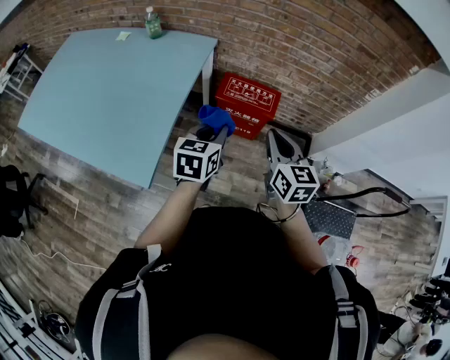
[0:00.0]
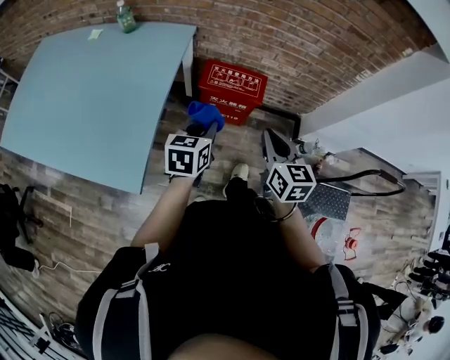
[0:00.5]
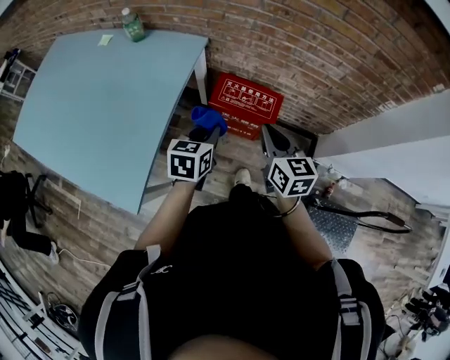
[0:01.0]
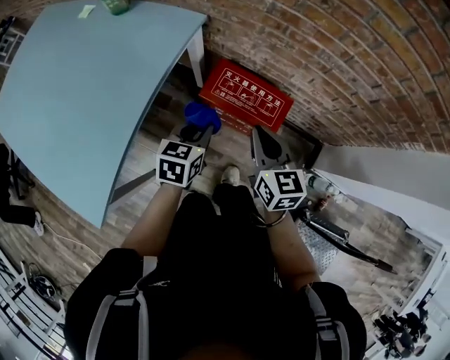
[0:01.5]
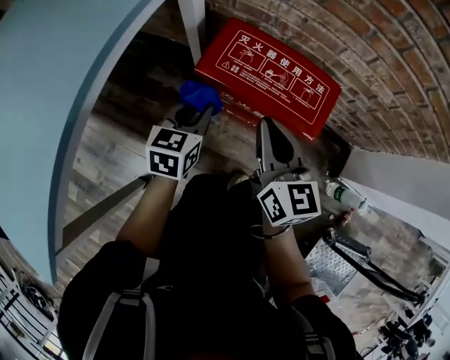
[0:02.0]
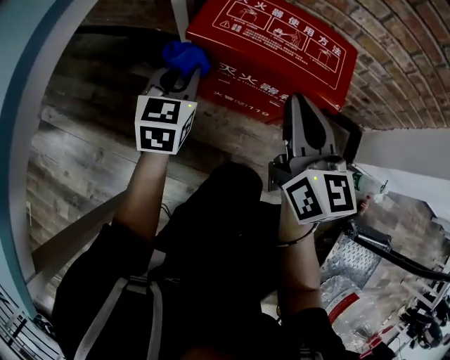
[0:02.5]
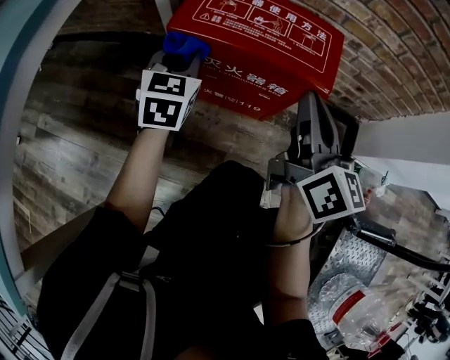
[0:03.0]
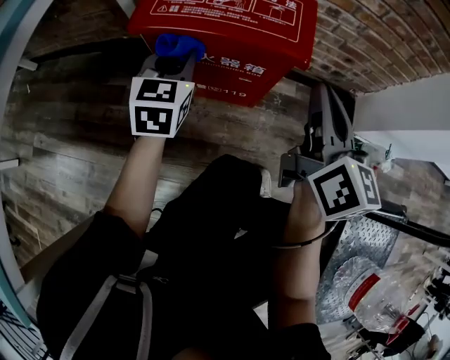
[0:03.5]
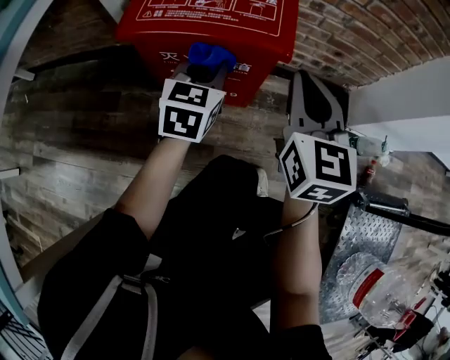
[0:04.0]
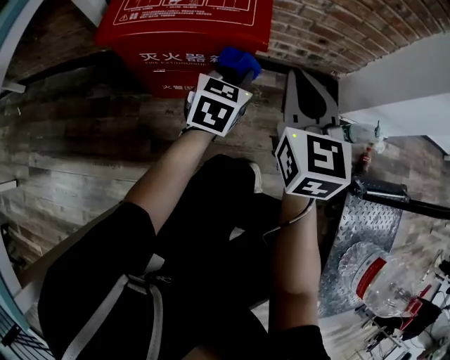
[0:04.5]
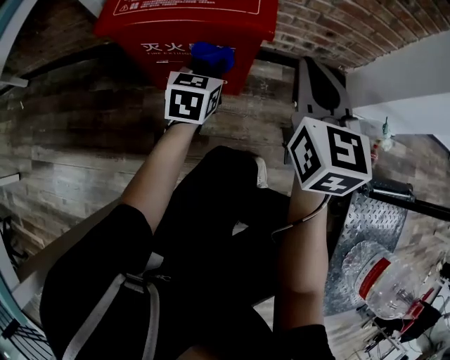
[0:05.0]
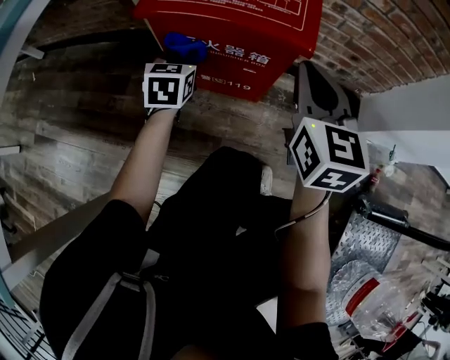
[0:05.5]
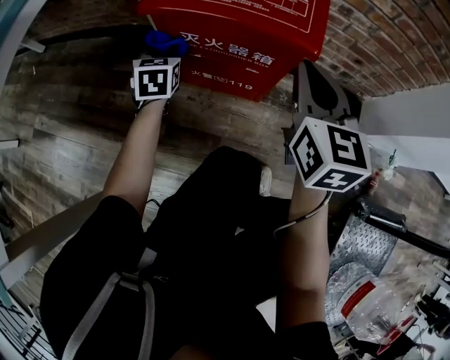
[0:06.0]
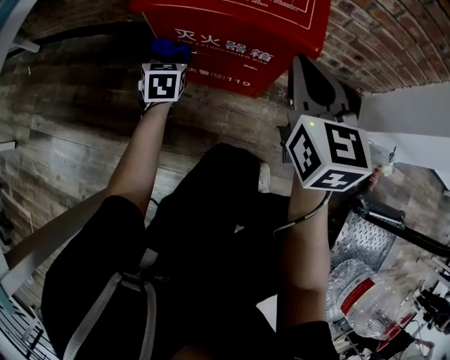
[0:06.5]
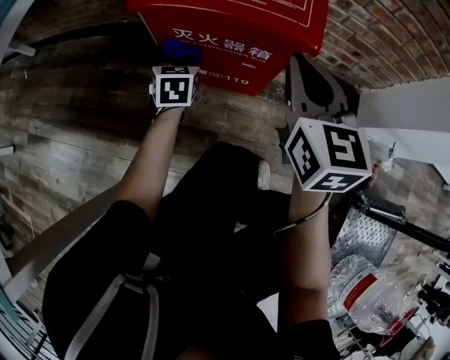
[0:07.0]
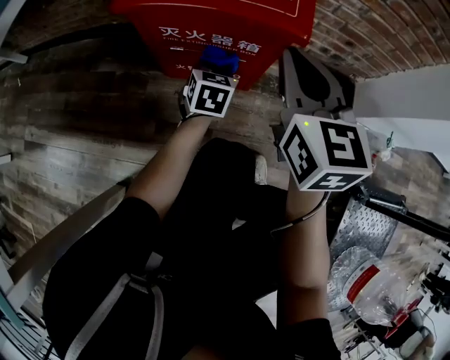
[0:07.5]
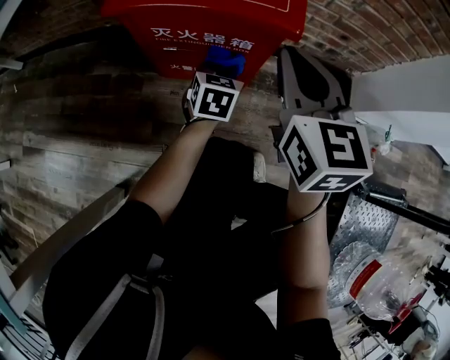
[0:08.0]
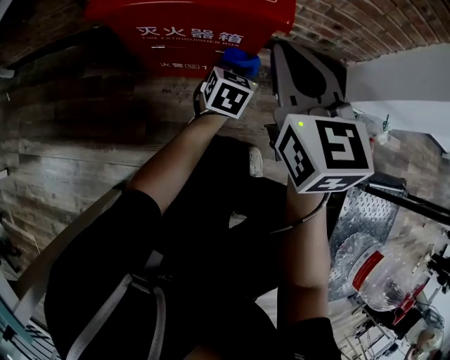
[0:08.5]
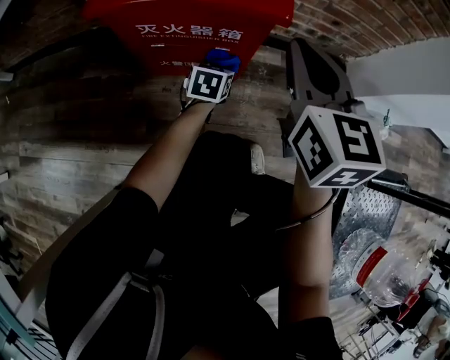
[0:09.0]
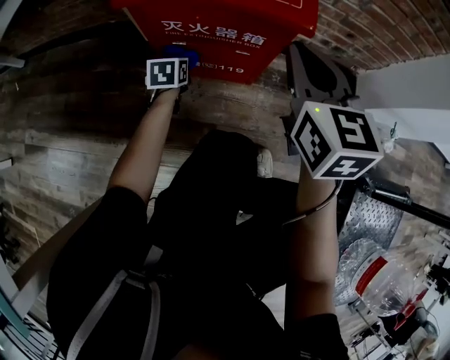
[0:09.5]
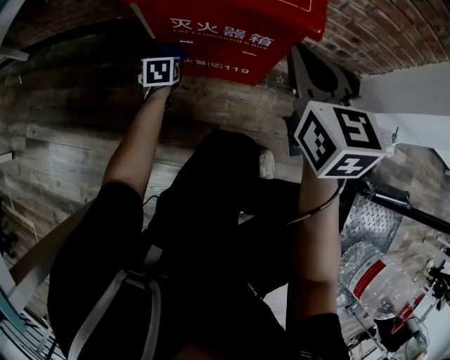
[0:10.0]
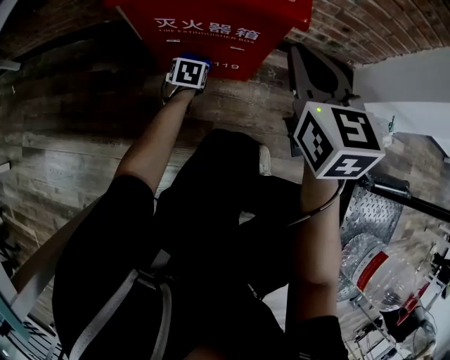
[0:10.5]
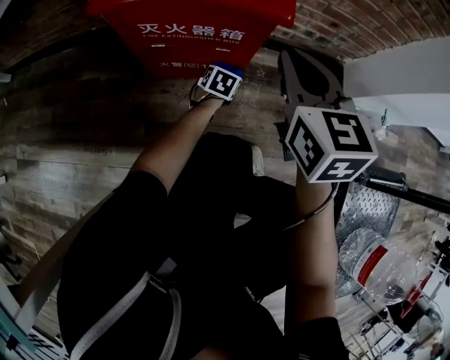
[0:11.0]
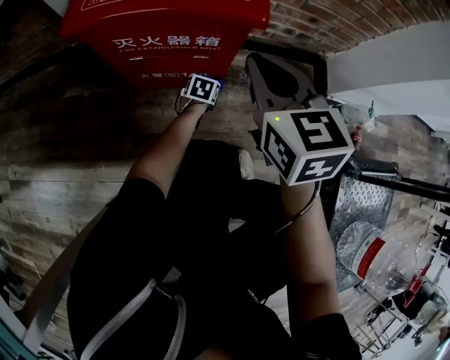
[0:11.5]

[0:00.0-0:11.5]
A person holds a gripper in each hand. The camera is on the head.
0:00.0 to 0:02.0: Both grippers move downward and forward, roughly 50 cm.
0:02.0 to 0:04.0: Both grippers travel together to the right and downward, about 20 cm. The left gripper rotates approximately 20 degrees, while the right gripper rotates some 30 degrees.
0:04.0 to 0:06.0: The left gripper changes place by some 20 cm, and changes its angle by roughly 30 degrees.
0:06.0 to 0:07.5: The left gripper travels to the right by approximately 20 cm.
0:07.5 to 0:09.5: The left gripper shifts roughly 15 cm to the left and downward.
0:09.5 to 0:11.5: The left gripper moves to the right and downward, some 25 cm, and rotates approximately 30 degrees.

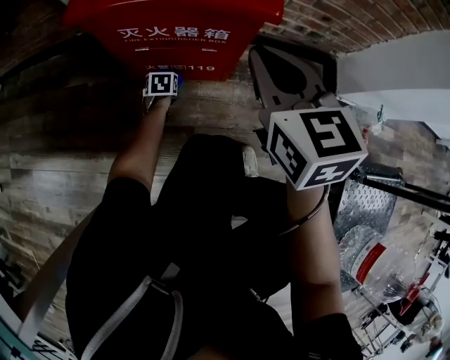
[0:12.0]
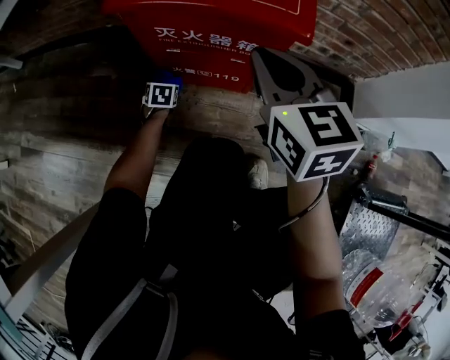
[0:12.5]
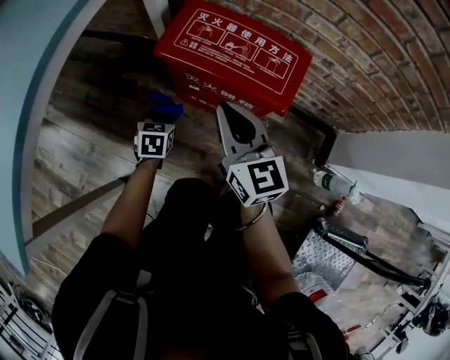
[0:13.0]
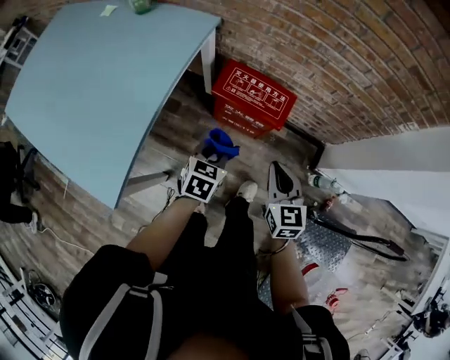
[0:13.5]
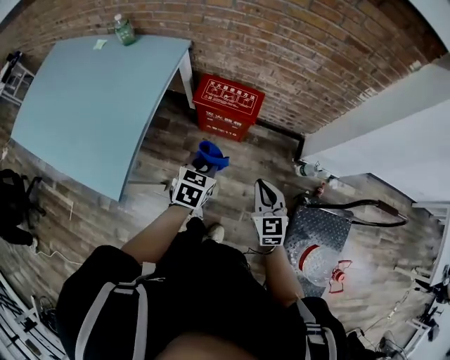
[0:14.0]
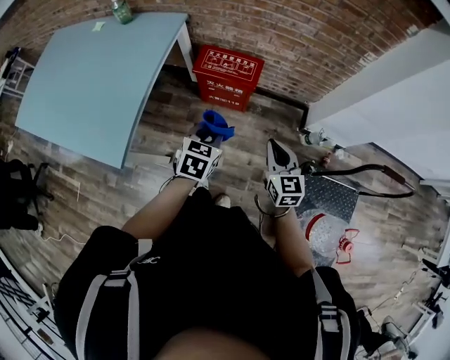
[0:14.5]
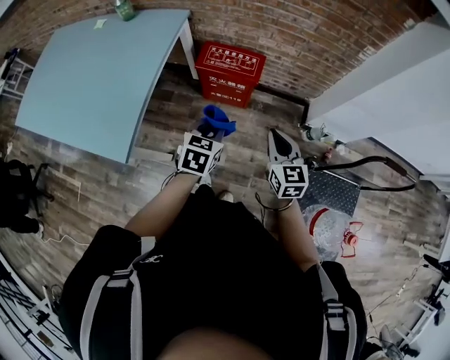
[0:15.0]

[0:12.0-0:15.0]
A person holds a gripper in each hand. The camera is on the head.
0:12.0 to 0:13.5: The right gripper heads upward and backward, covering roughly 35 cm. Meanwhile the left gripper goes approximately 70 cm upward, and rotates roughly 20 degrees.
0:13.5 to 0:15.0: The grippers both shift backward, upward and to the right by some 20 cm.

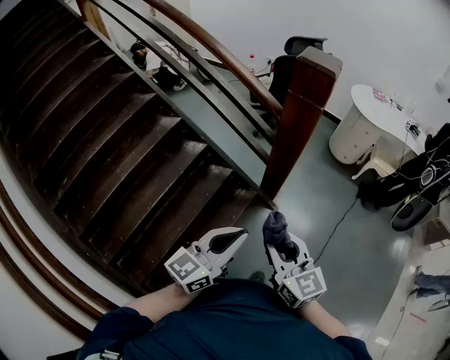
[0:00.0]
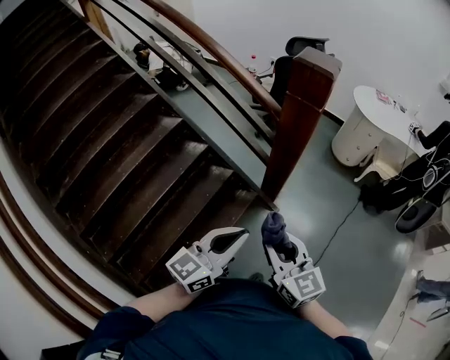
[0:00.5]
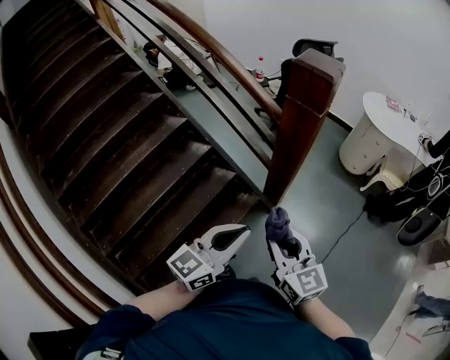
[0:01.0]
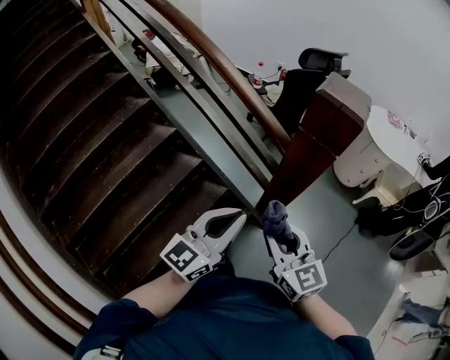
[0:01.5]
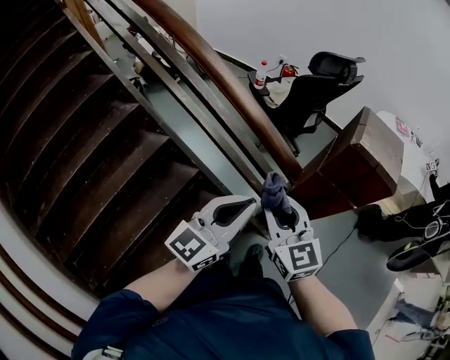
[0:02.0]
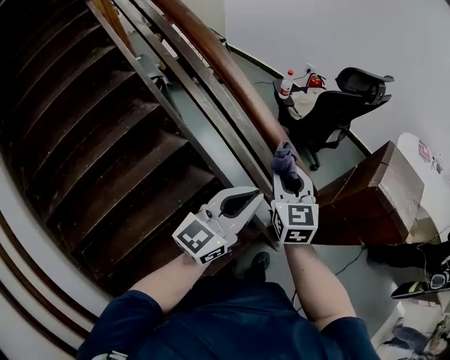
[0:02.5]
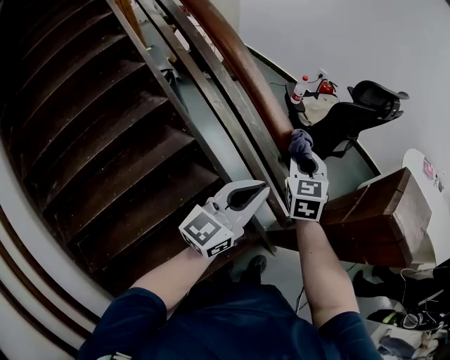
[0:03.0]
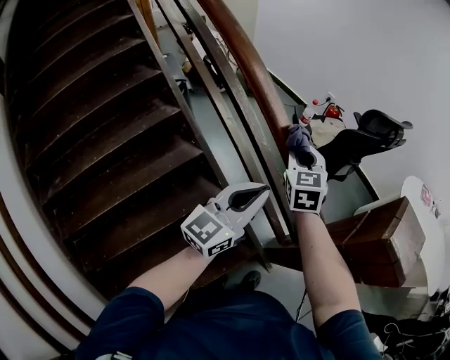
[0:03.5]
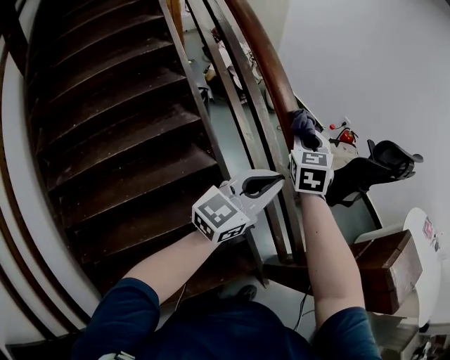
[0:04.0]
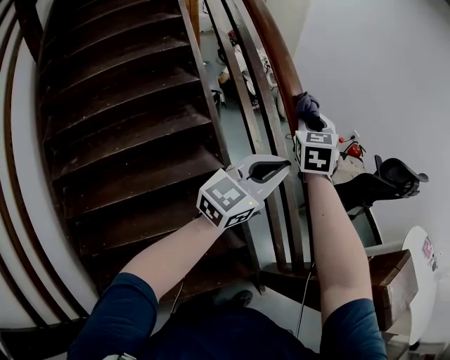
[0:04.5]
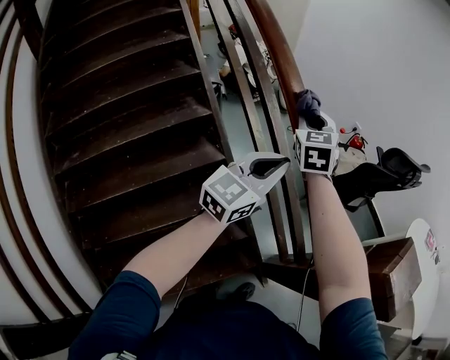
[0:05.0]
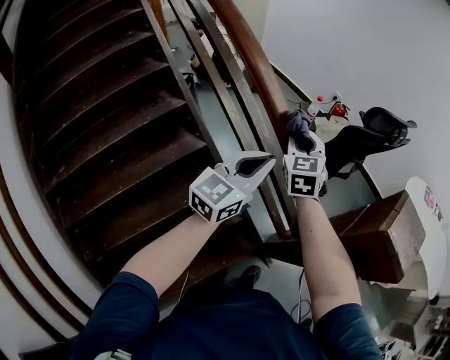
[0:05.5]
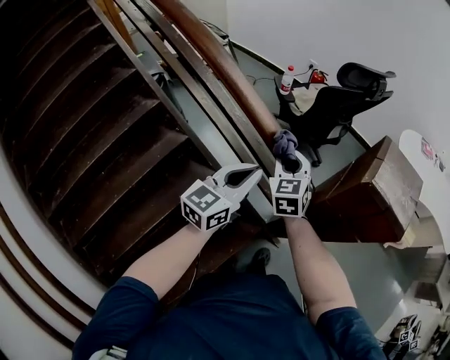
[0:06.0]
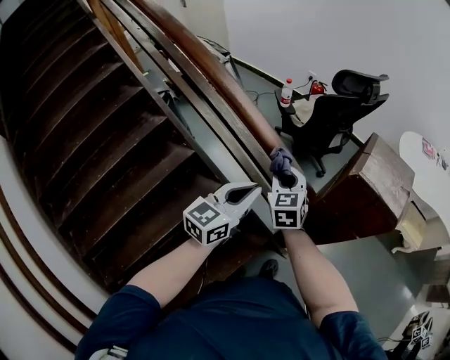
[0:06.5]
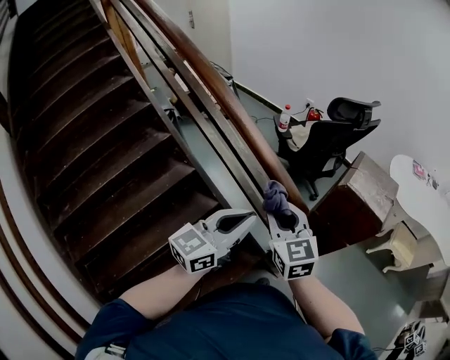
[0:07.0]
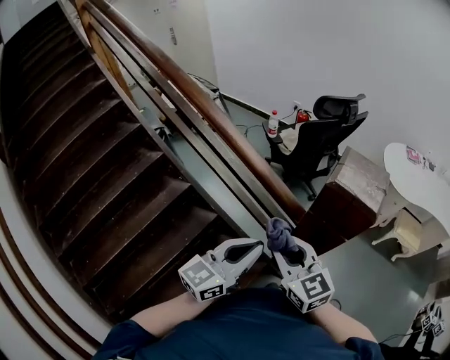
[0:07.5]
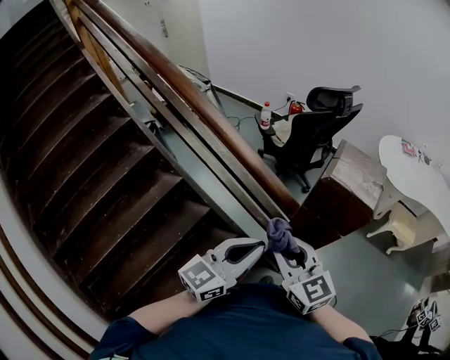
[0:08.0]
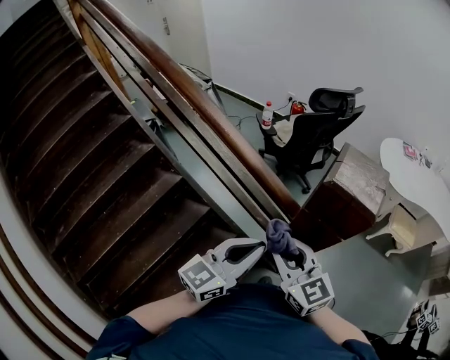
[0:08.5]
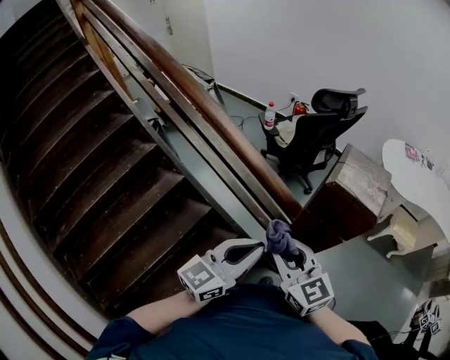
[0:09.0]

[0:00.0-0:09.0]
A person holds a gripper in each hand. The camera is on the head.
0:00.0 to 0:02.0: The pair of grippers is taken forward, roughly 40 cm.
0:02.0 to 0:04.5: The right gripper shifts some 40 cm forward and to the left, while the left gripper heads forward, to the left and upward, covering roughly 30 cm, and swivels about 20 degrees.
0:04.5 to 0:07.0: The left gripper shifts some 25 cm backward and to the right, and turns by some 20 degrees. The right gripper travels backward and to the right by roughly 40 cm.
0:07.0 to 0:09.0: The left gripper shifts roughly 5 cm to the right, while the right gripper heads backward and to the right, covering about 10 cm.

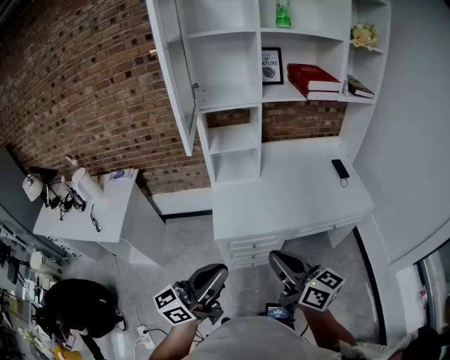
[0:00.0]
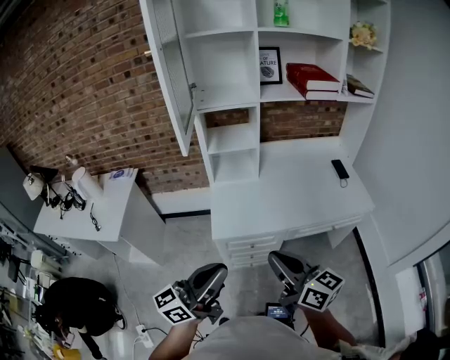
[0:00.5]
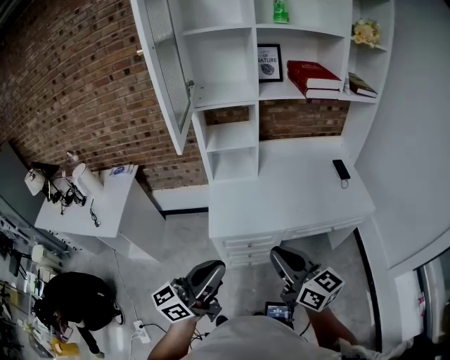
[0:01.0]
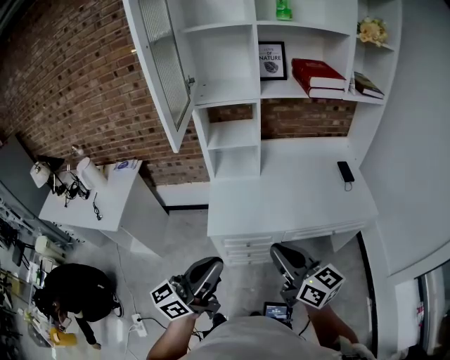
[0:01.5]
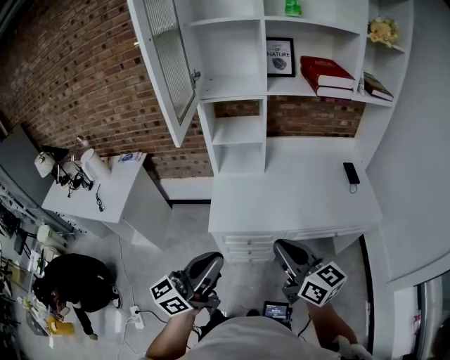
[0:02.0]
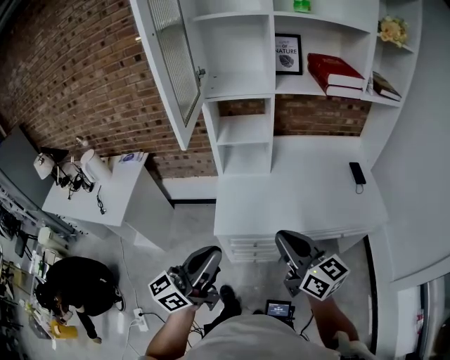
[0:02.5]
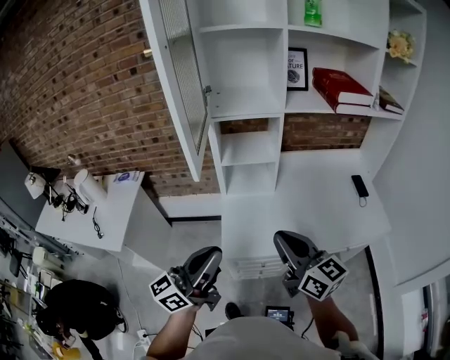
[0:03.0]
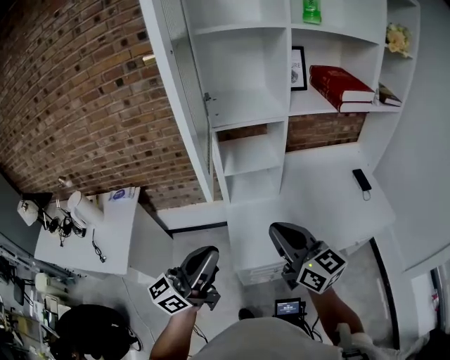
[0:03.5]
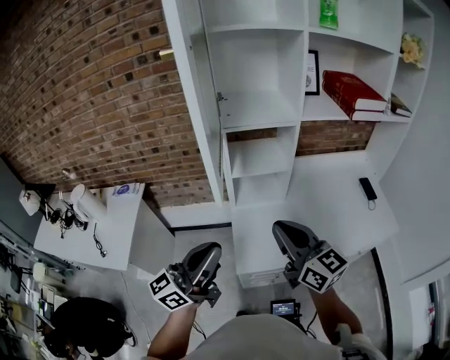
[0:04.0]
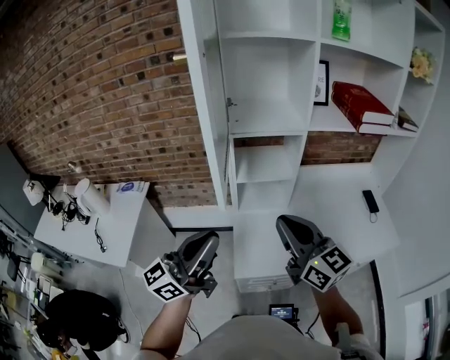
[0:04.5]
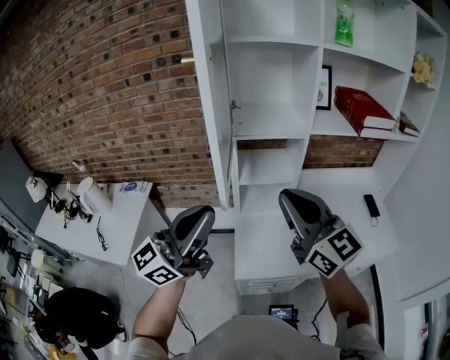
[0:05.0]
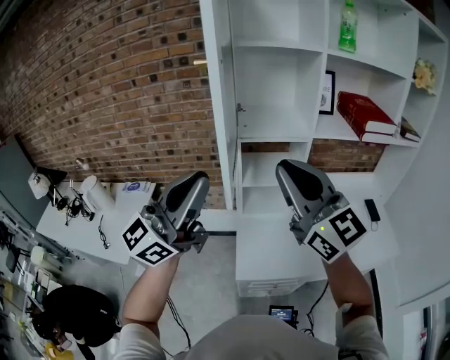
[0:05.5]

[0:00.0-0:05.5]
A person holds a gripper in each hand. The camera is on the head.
0:00.0 to 0:02.0: The left gripper heads to the right, covering some 5 cm. Meanwhile the right gripper goes some 10 cm to the right and forward.
0:02.0 to 0:03.5: The two grippers go roughly 25 cm forward and to the left.
0:03.5 to 0:05.5: The two grippers go approximately 20 cm upward. The left gripper swivels roughly 30 degrees, while the right gripper changes its angle by some 30 degrees.
